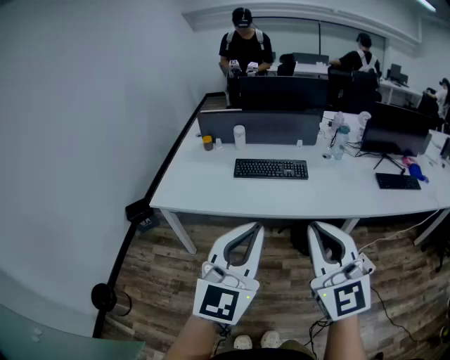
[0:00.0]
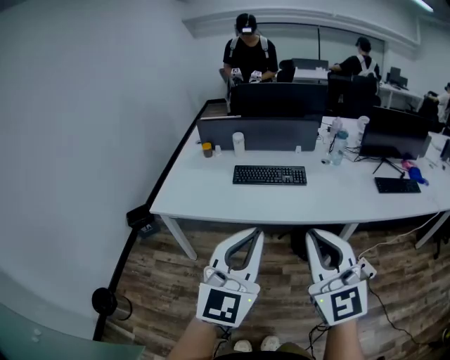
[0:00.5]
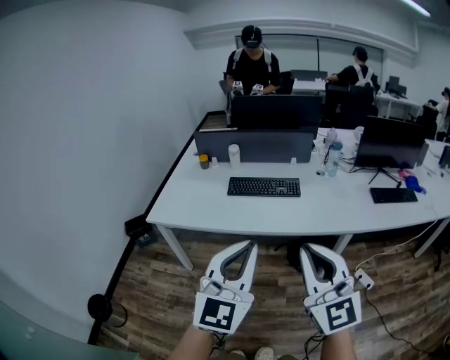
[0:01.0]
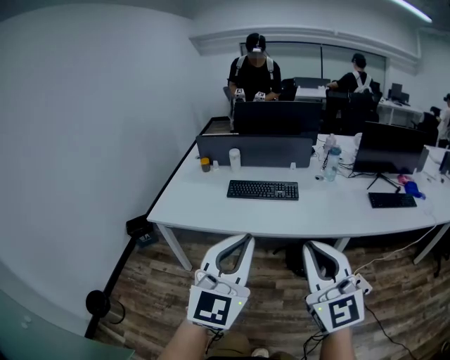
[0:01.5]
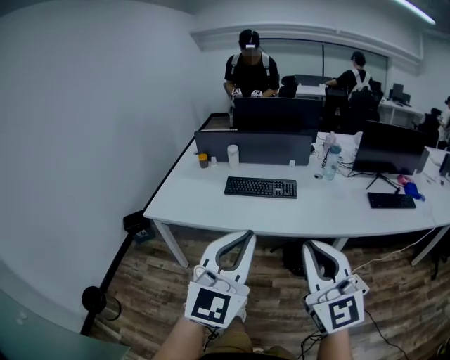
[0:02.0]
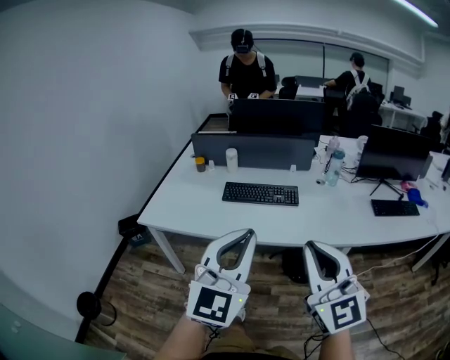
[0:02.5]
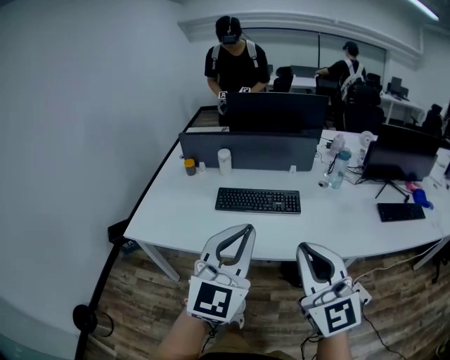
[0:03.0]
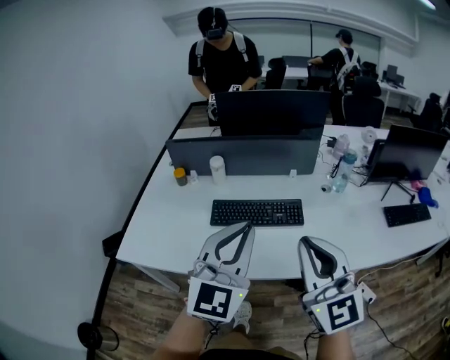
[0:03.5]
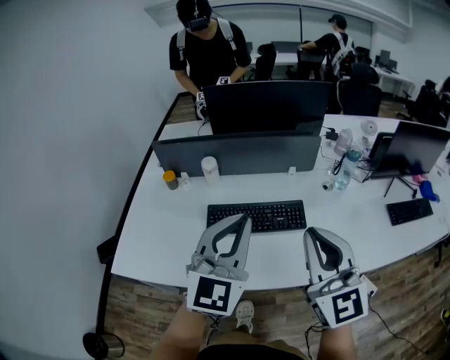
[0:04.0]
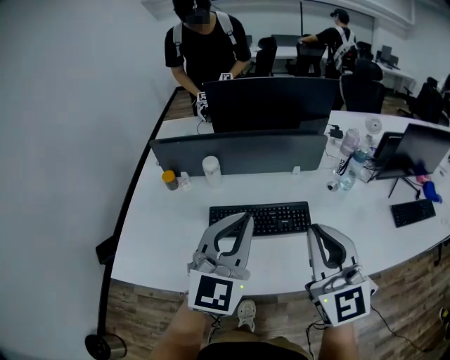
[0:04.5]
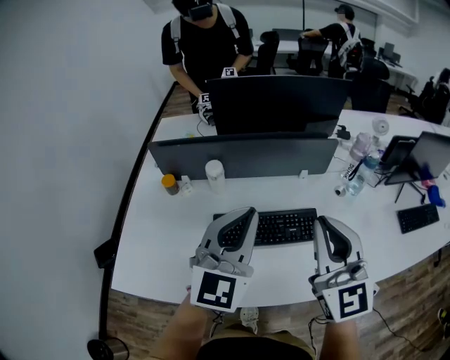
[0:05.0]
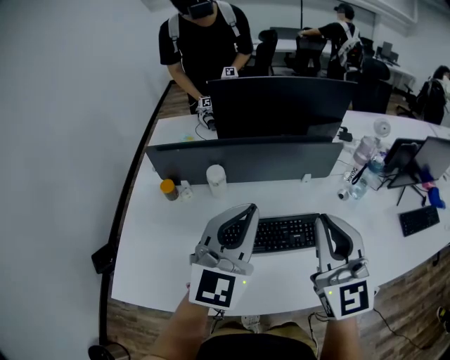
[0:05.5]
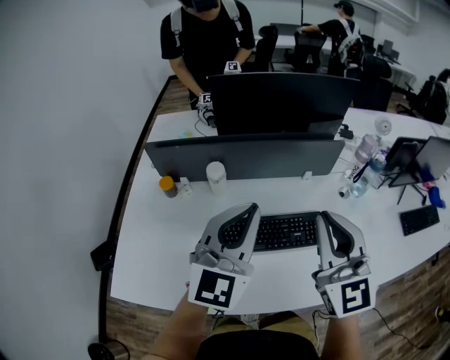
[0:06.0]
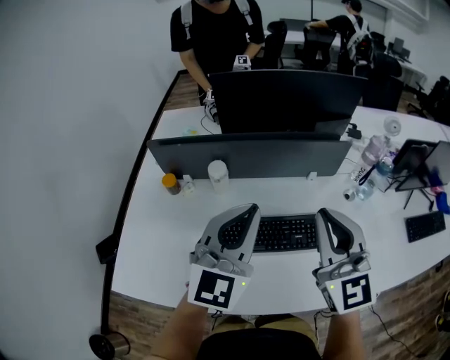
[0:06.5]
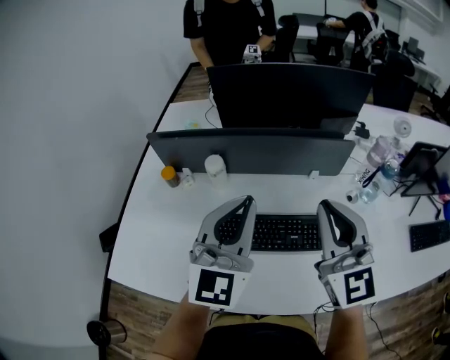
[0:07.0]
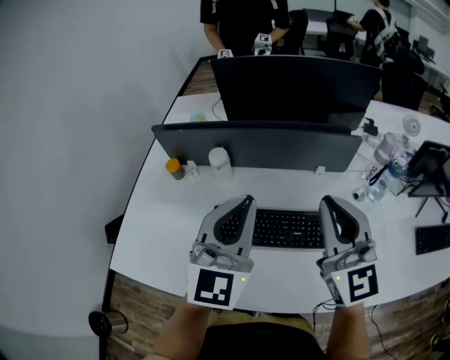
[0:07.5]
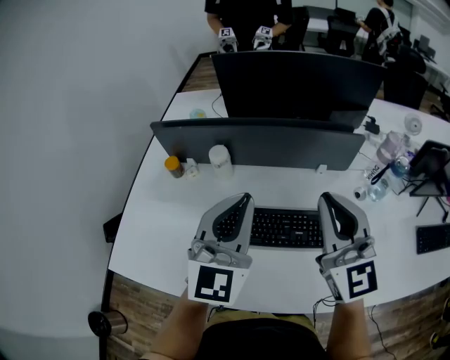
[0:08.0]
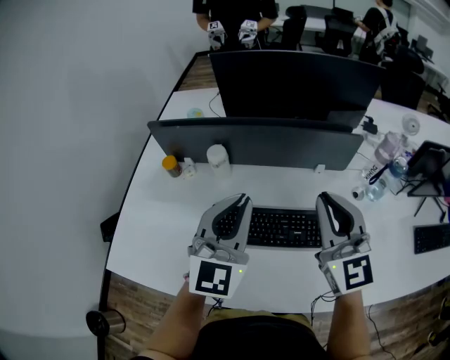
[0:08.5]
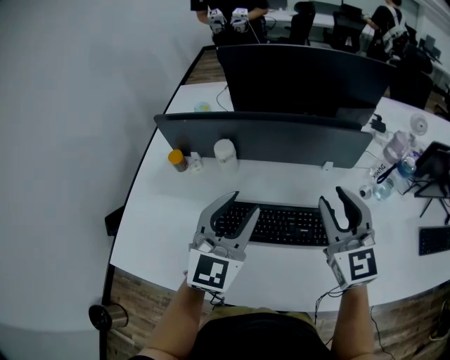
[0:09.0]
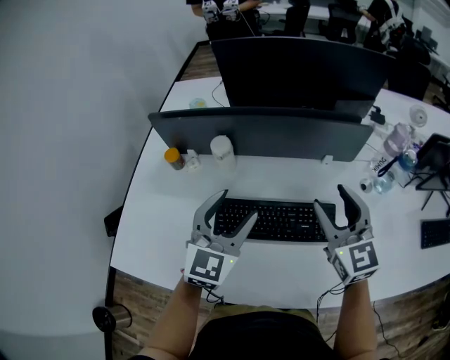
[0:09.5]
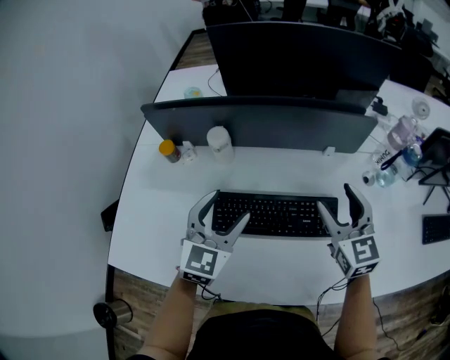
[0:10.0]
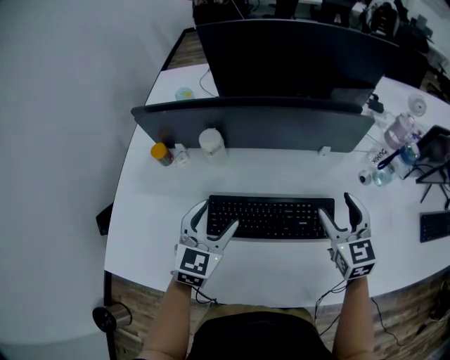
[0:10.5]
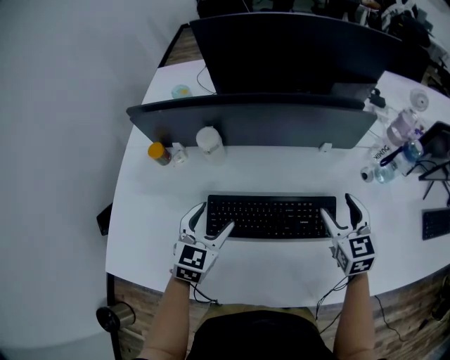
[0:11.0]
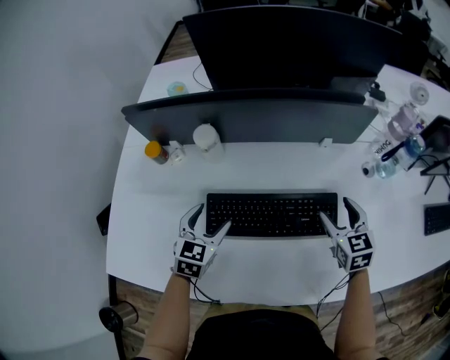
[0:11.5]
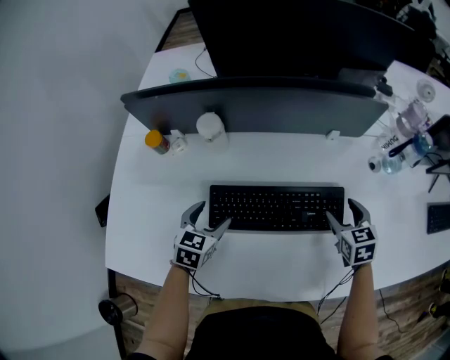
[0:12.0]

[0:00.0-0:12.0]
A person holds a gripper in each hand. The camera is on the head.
0:00.0 to 0:02.0: Both grippers travel together to the right, some 10 cm.
0:02.0 to 0:04.0: The two grippers travel together, forward, approximately 40 cm.
0:04.0 to 0:06.0: The two grippers go roughly 15 cm forward and to the left.
0:06.0 to 0:08.0: The right gripper moves forward, roughly 5 cm; the left gripper moves approximately 5 cm.
0:08.0 to 0:10.0: The right gripper goes about 15 cm downward, turns by some 20 degrees, and opens its fingers; the left gripper travels downward and to the left by approximately 15 cm, swivels some 20 degrees, and opens.
0:10.0 to 0:12.0: The grippers both shift downward by some 20 cm. The left gripper swivels about 30 degrees. Meanwhile the right gripper swivels some 30 degrees.

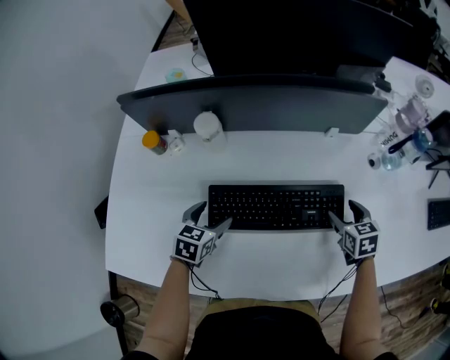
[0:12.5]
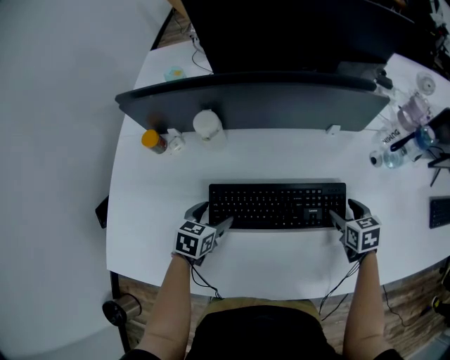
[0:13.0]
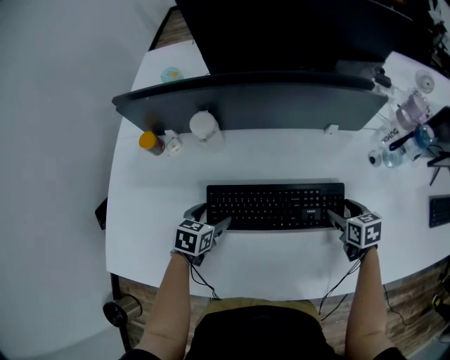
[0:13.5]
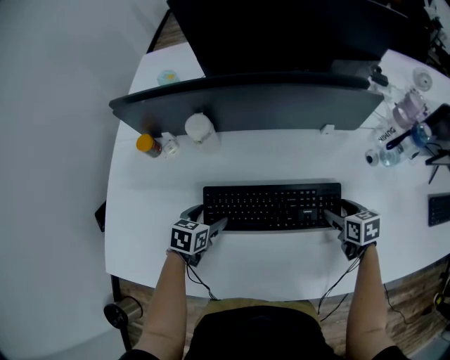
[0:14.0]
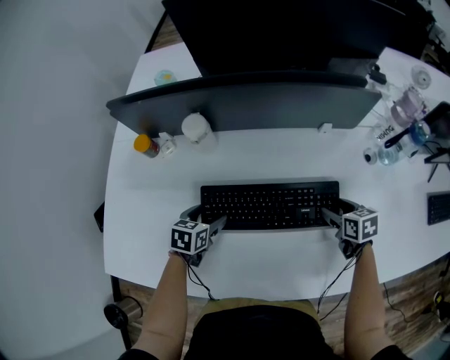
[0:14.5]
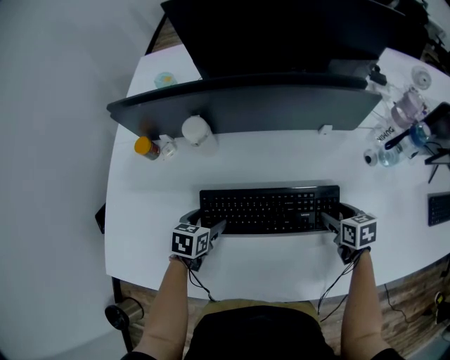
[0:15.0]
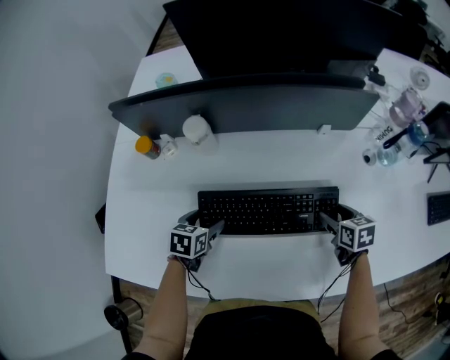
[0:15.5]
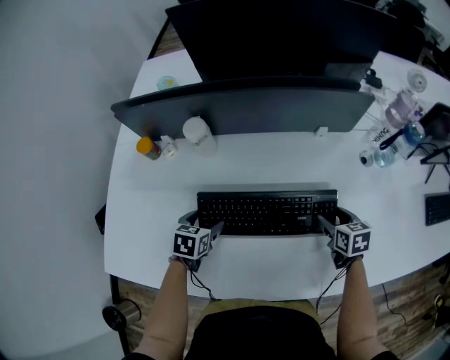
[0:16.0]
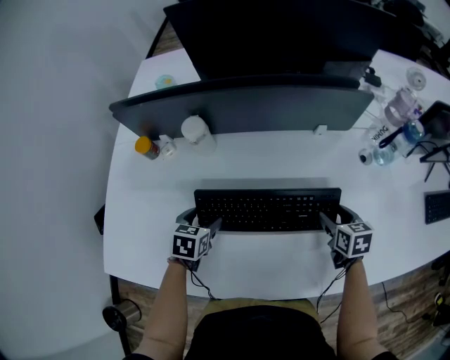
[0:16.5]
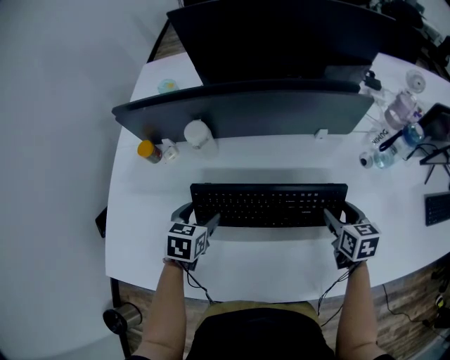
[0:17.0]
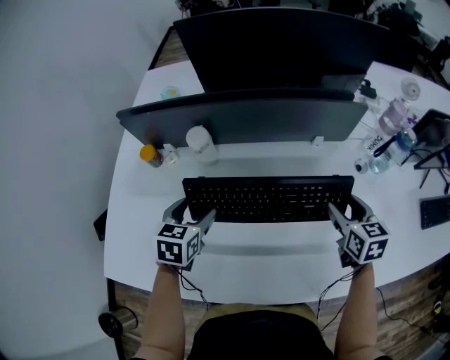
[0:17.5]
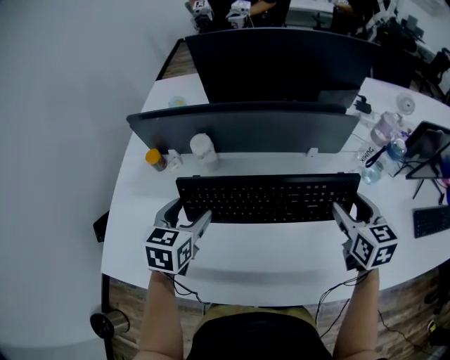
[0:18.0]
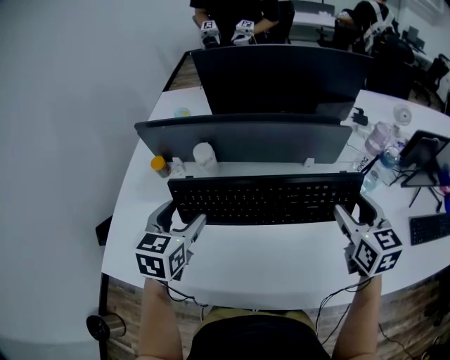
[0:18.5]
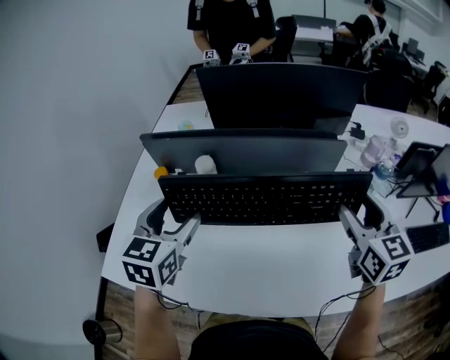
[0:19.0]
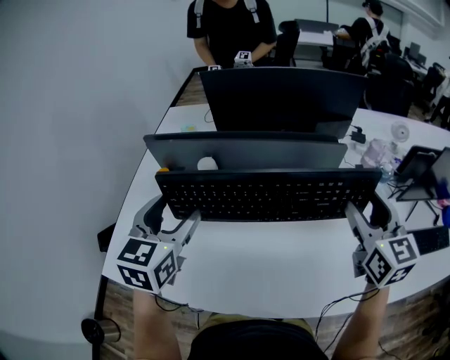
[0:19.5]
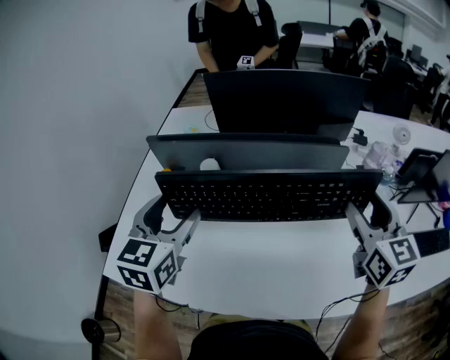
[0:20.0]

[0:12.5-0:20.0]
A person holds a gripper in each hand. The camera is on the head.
0:12.5 to 0:16.5: The grippers make only small movements.
0:16.5 to 0:18.0: The two grippers go some 20 cm upward. The right gripper rotates about 20 degrees; the left gripper swivels about 20 degrees.
0:18.0 to 0:20.0: Both grippers travel together upward, roughly 15 cm. The right gripper turns by about 20 degrees.

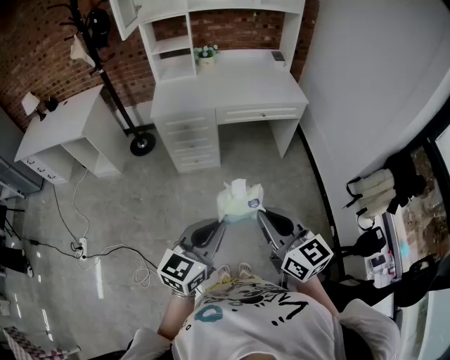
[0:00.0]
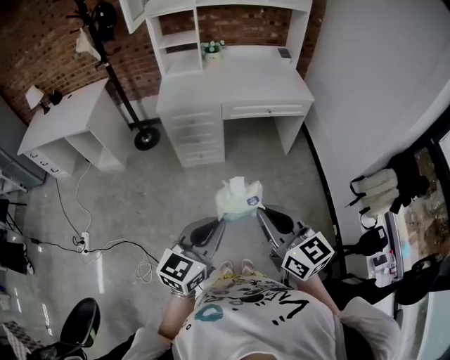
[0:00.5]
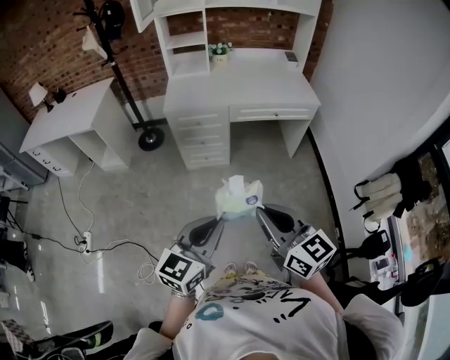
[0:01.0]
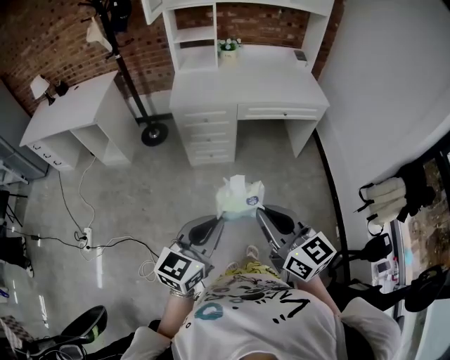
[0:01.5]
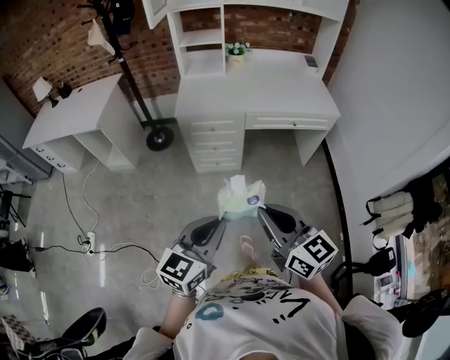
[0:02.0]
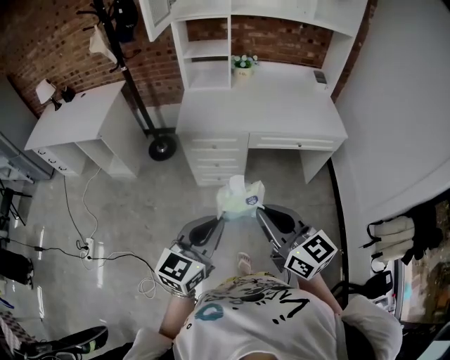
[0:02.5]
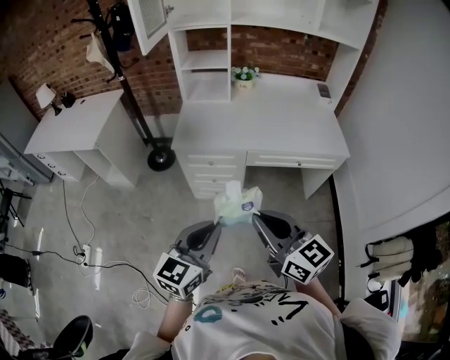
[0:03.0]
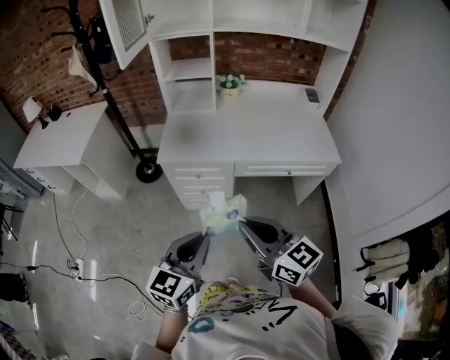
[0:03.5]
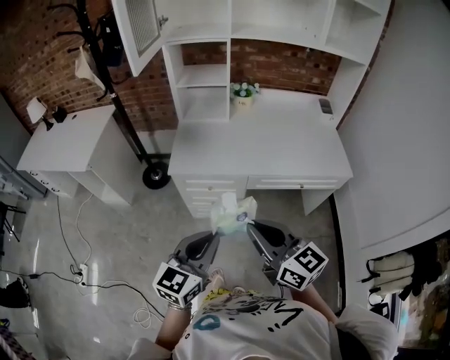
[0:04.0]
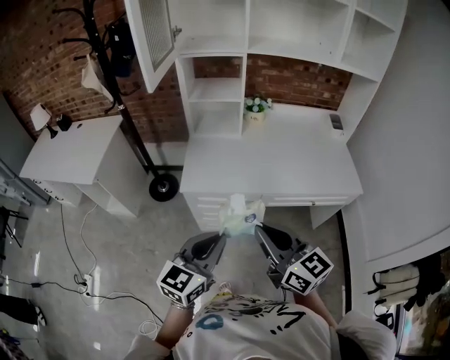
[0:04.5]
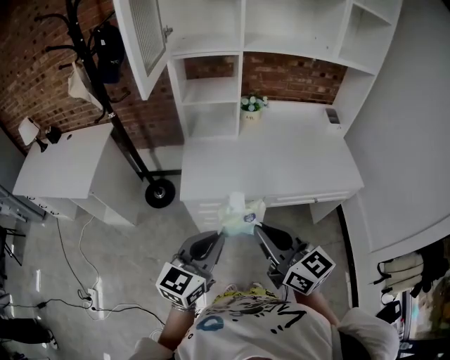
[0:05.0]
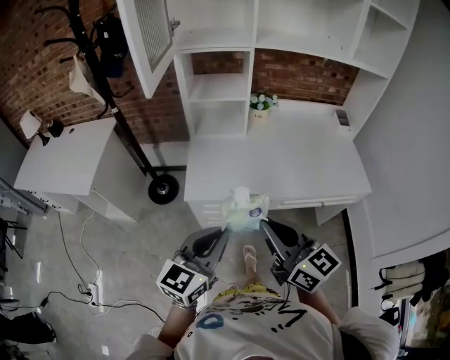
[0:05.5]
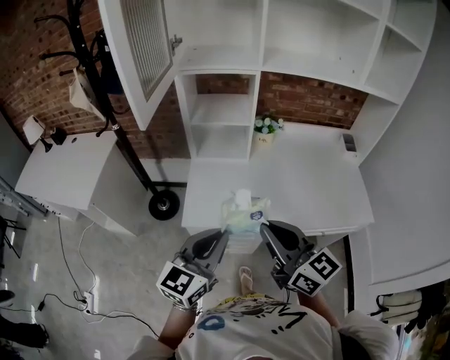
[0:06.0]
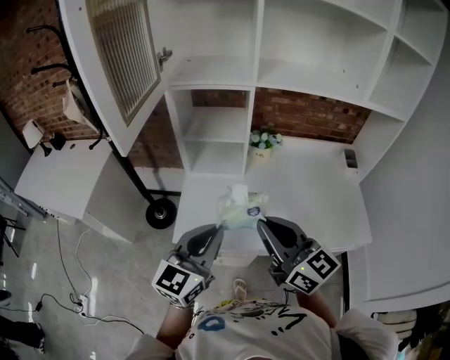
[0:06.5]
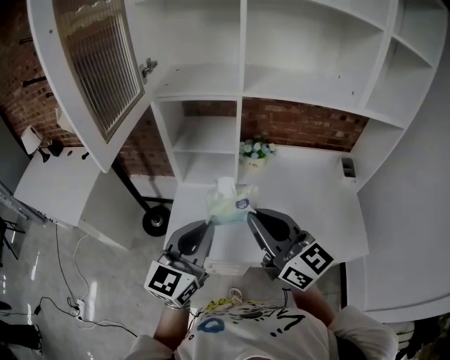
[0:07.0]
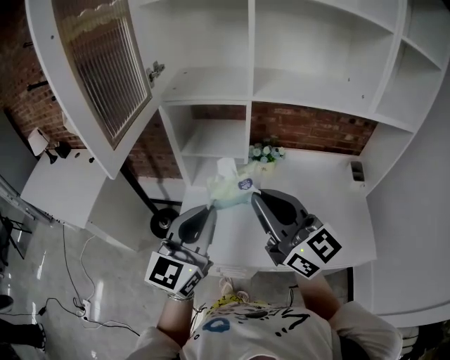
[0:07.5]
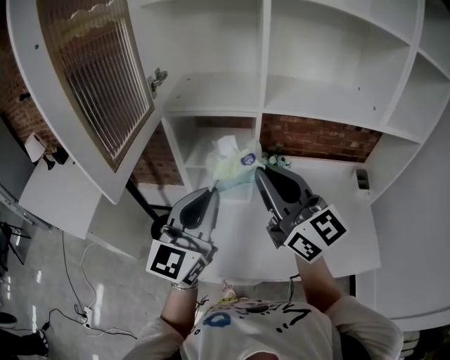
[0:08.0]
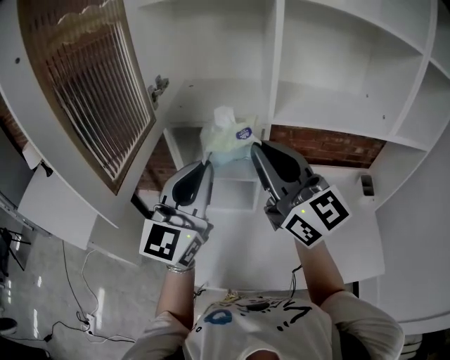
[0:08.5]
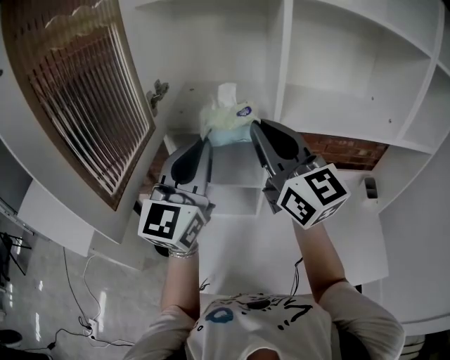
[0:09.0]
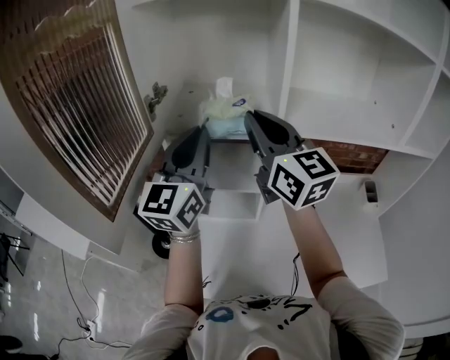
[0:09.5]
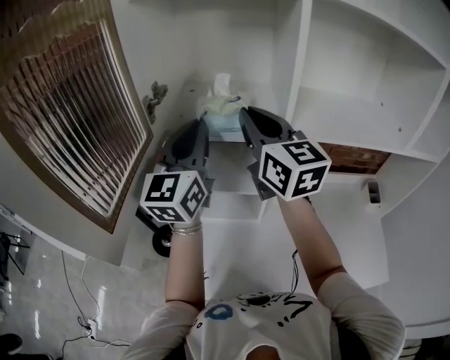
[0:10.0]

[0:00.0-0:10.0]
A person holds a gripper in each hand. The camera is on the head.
0:00.0 to 0:02.0: The left gripper travels to the left and forward by roughly 15 cm. The right gripper moves forward and to the left, some 15 cm.
0:02.0 to 0:04.0: Both grippers travel together forward, roughly 30 cm.
0:04.0 to 0:06.0: The grippers both shift forward by roughly 25 cm.
0:06.0 to 0:08.0: The two grippers go about 30 cm forward and upward. The left gripper swivels roughly 20 degrees.
0:08.0 to 0:10.0: The grippers both shift forward by roughly 25 cm.
